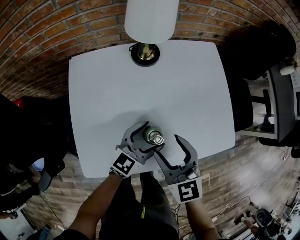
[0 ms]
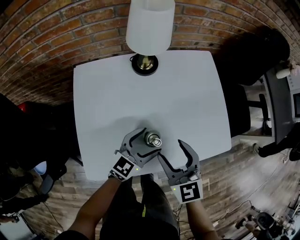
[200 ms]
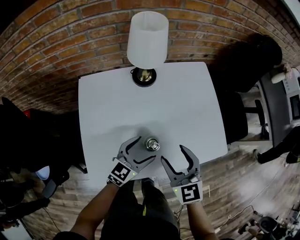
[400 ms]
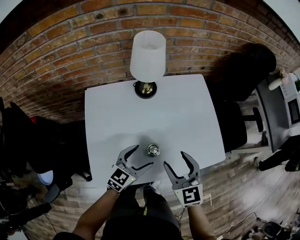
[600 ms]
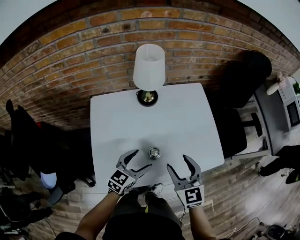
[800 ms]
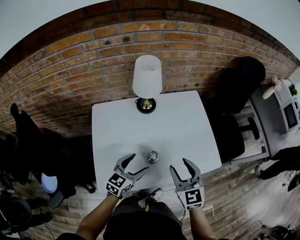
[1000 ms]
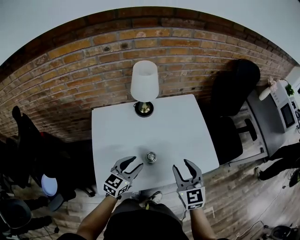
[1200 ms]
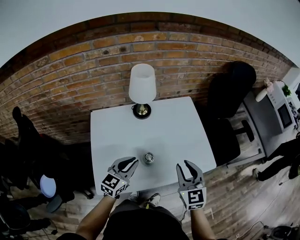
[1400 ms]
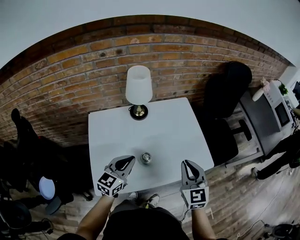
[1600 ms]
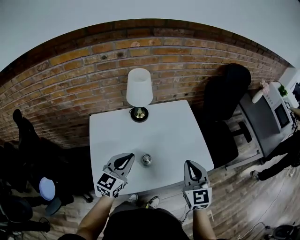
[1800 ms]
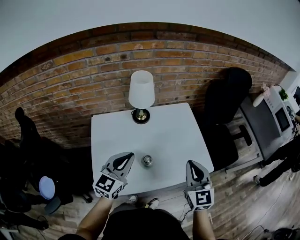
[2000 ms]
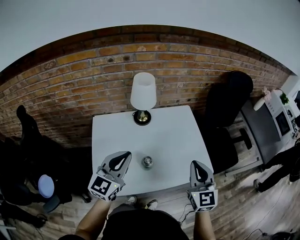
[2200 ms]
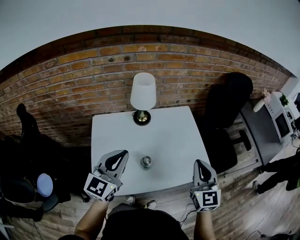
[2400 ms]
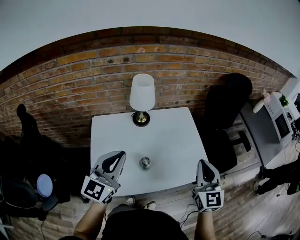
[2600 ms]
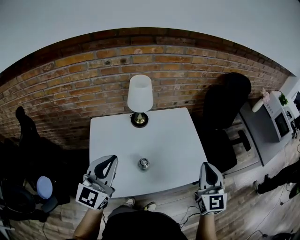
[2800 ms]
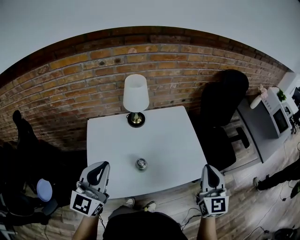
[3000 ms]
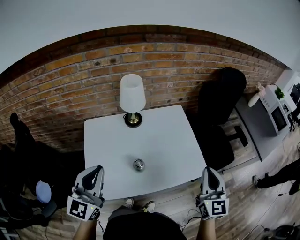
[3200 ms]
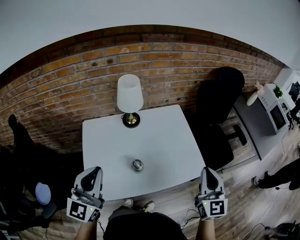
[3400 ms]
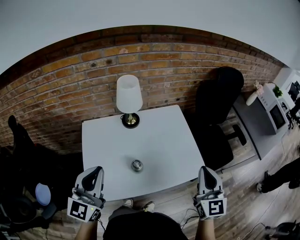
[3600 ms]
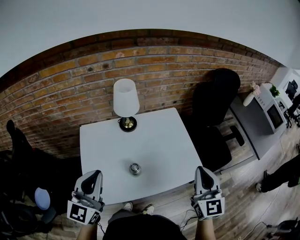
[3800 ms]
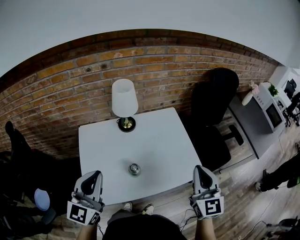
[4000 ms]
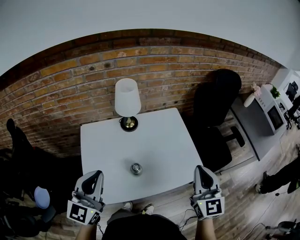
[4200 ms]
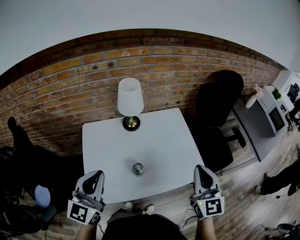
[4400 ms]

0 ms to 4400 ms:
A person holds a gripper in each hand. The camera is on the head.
0 ms to 1400 ms: The right gripper goes about 15 cm upward and to the right, and closes its fingers. Meanwhile the left gripper moves upward and to the left, about 15 cm, and closes up.
1400 ms to 3000 ms: The right gripper moves upward and to the right, about 15 cm, and closes. The left gripper shifts some 20 cm upward, and changes its angle by about 30 degrees.
3000 ms to 4400 ms: The grippers move only a little.

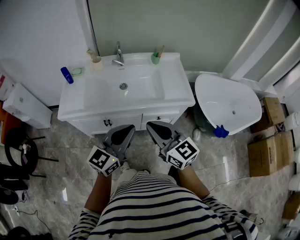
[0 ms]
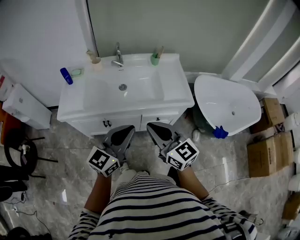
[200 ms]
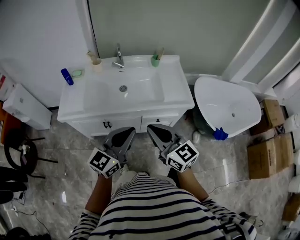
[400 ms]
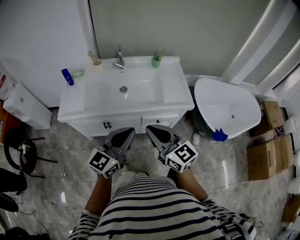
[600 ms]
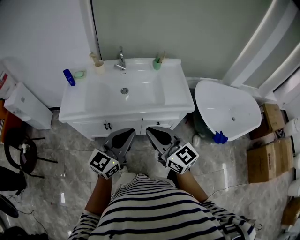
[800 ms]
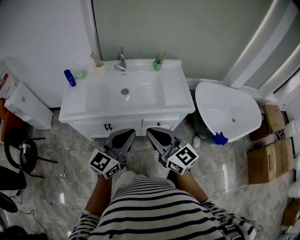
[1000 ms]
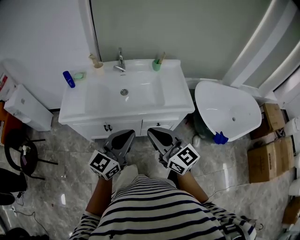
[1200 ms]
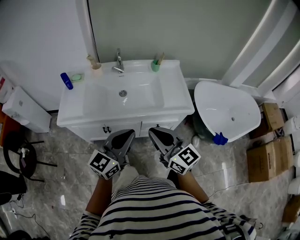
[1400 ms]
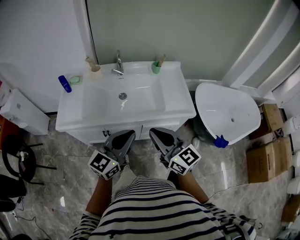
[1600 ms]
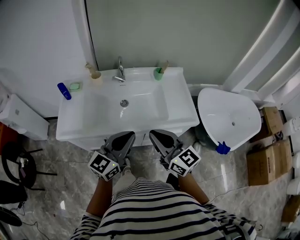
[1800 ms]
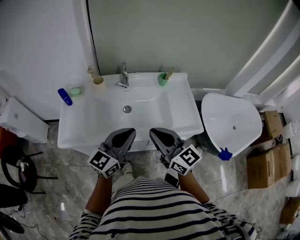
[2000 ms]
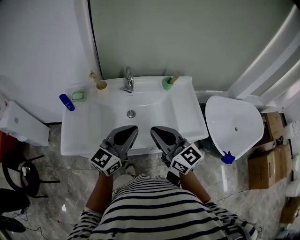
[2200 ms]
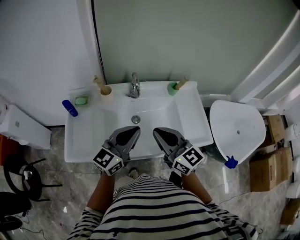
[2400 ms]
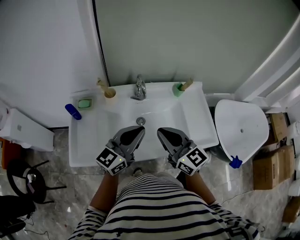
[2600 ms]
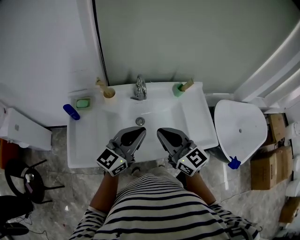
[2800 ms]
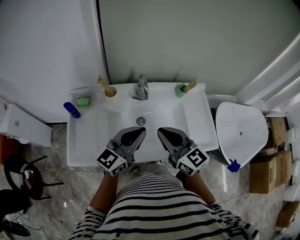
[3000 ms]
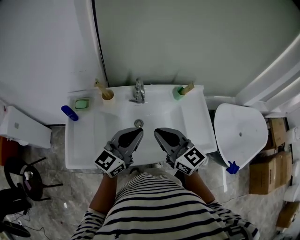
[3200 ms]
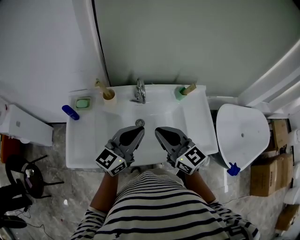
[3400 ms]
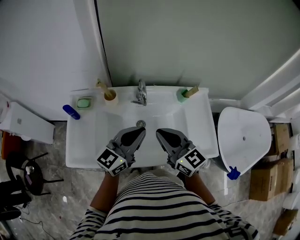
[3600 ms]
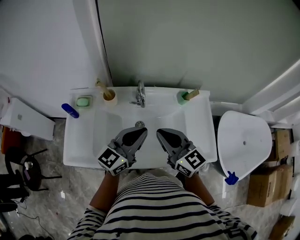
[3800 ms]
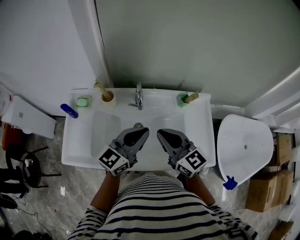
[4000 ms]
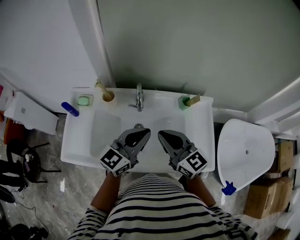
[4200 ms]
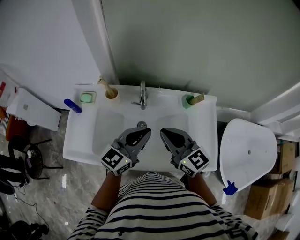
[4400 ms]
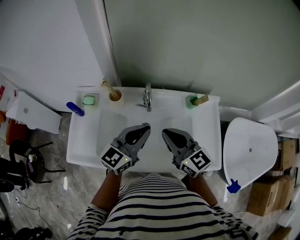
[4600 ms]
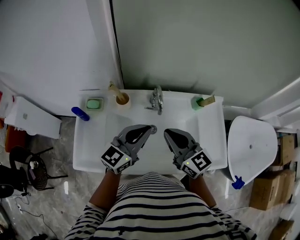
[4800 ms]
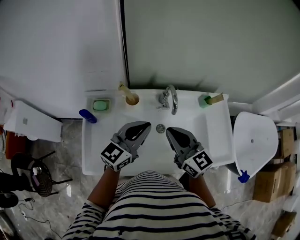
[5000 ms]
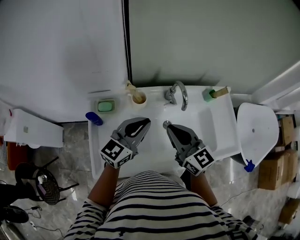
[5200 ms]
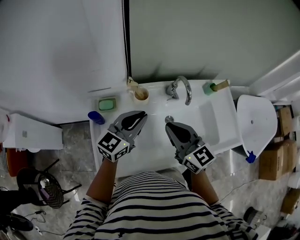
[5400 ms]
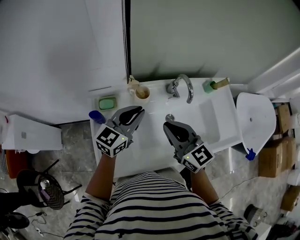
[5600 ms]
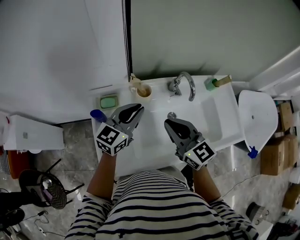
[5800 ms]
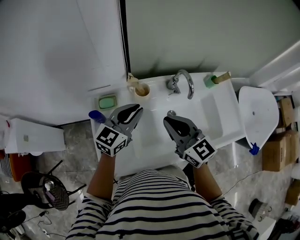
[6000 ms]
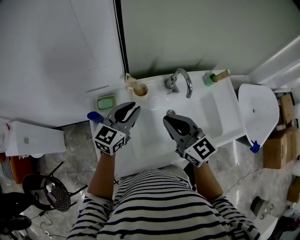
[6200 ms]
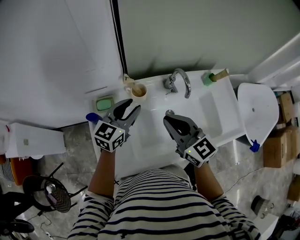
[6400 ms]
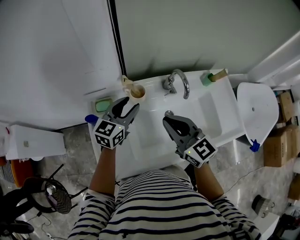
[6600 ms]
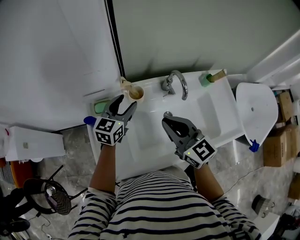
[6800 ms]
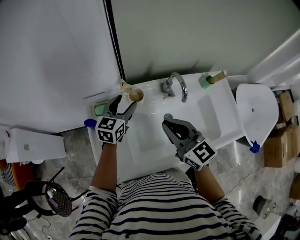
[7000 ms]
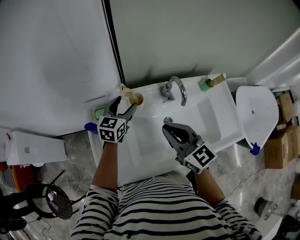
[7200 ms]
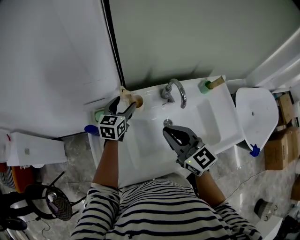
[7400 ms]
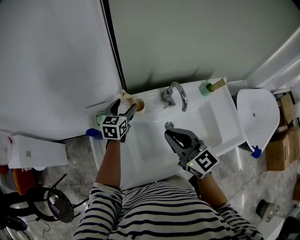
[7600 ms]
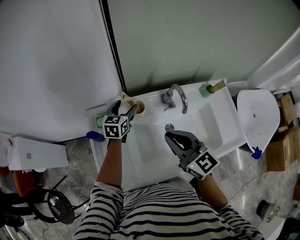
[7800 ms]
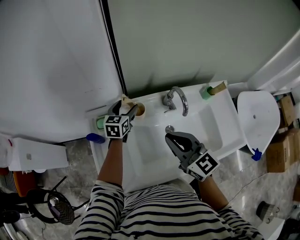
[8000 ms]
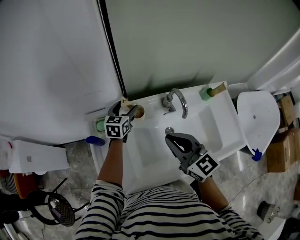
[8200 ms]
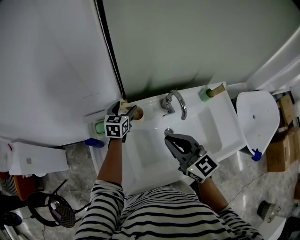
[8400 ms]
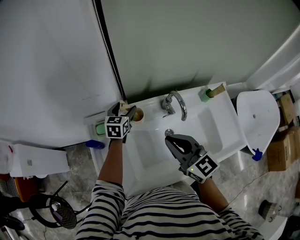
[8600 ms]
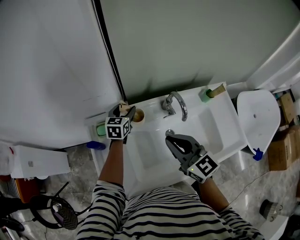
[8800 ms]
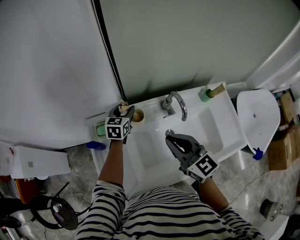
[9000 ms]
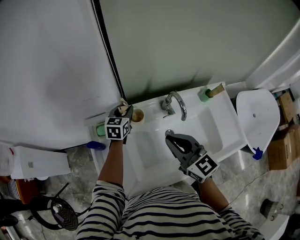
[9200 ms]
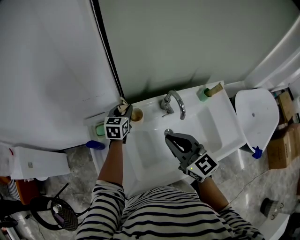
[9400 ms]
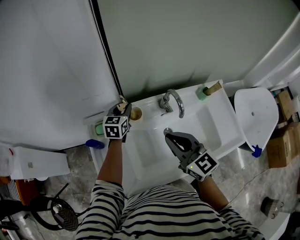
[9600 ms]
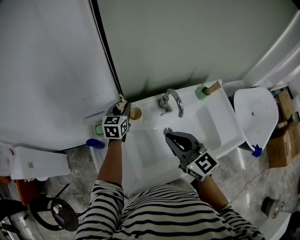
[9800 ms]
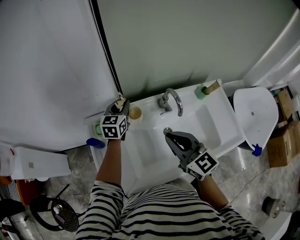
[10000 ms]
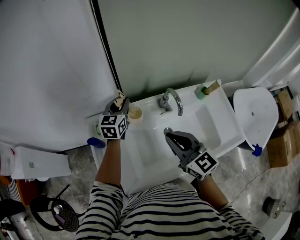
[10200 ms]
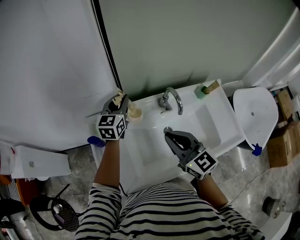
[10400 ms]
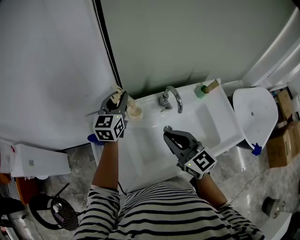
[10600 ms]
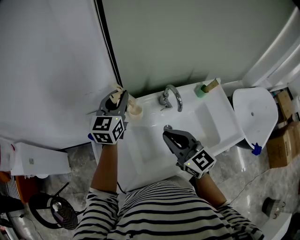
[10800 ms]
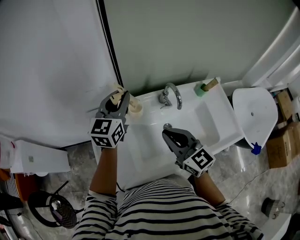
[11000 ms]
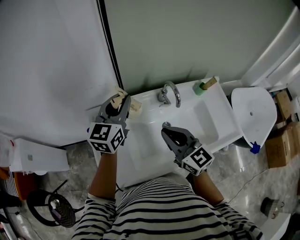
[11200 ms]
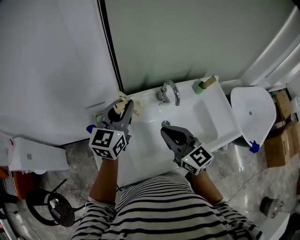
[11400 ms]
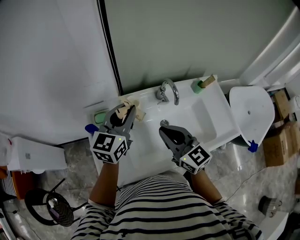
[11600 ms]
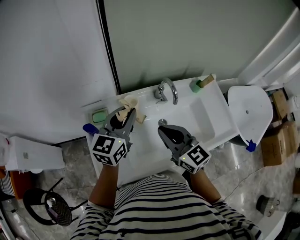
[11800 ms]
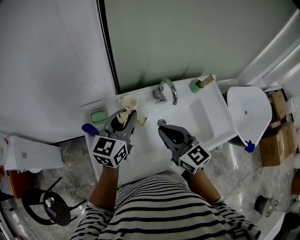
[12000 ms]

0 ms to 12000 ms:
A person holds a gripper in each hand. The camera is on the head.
0 ms to 1600 ms: The left gripper is displaced forward by roughly 5 cm.
1600 ms to 3000 ms: The two grippers go about 25 cm forward and to the left.
3000 ms to 4400 ms: The left gripper is displaced to the right and forward by approximately 10 cm. Meanwhile the right gripper goes approximately 10 cm forward and to the right.
4400 ms to 6000 ms: The two grippers go about 25 cm to the left.
6000 ms to 7600 ms: The left gripper moves forward and downward, about 15 cm, swivels about 20 degrees, and opens.
7600 ms to 9000 ms: The left gripper shifts by approximately 5 cm, and closes.
9000 ms to 10400 ms: The left gripper moves upward, roughly 10 cm, and closes.
10400 ms to 12000 ms: The left gripper goes roughly 15 cm backward.

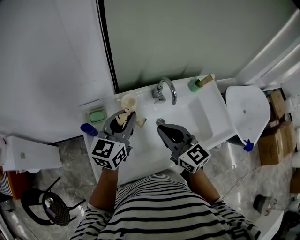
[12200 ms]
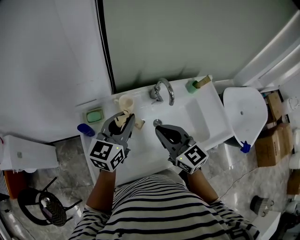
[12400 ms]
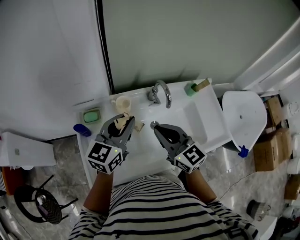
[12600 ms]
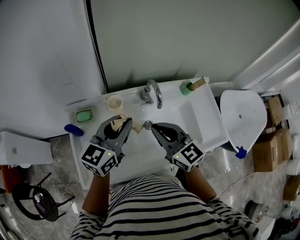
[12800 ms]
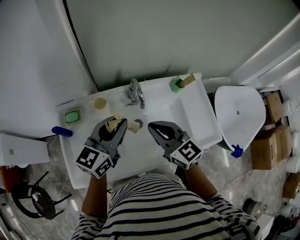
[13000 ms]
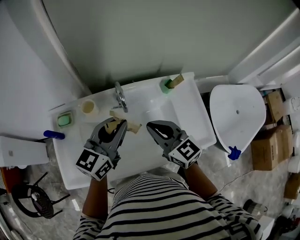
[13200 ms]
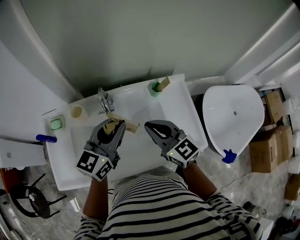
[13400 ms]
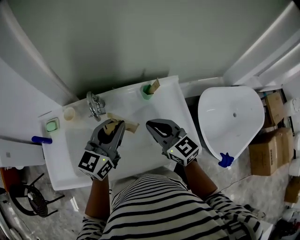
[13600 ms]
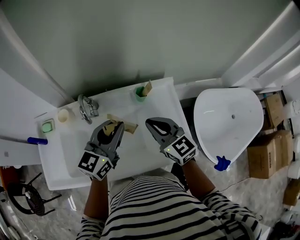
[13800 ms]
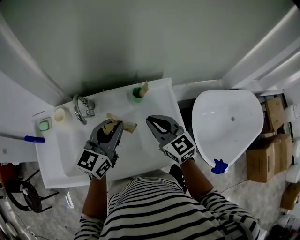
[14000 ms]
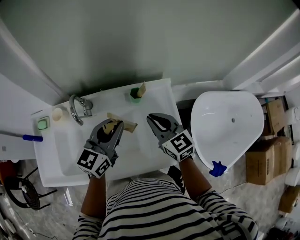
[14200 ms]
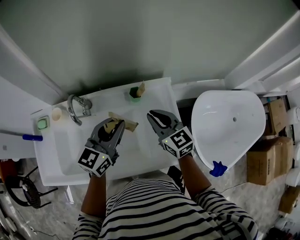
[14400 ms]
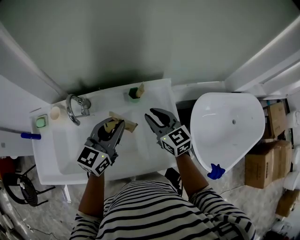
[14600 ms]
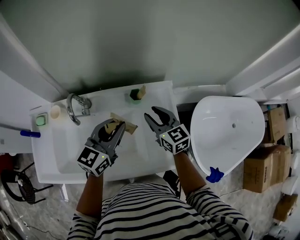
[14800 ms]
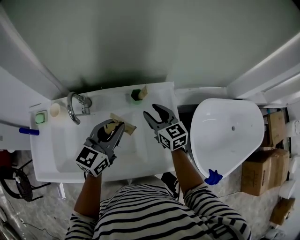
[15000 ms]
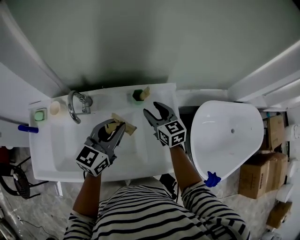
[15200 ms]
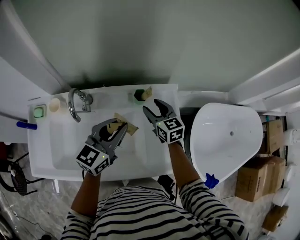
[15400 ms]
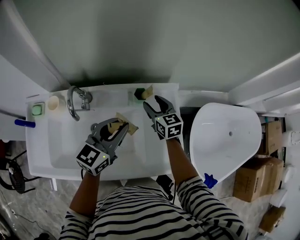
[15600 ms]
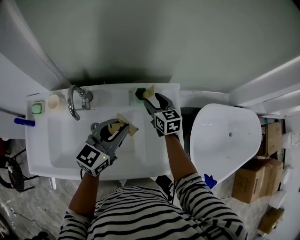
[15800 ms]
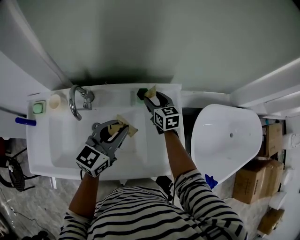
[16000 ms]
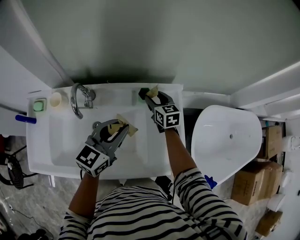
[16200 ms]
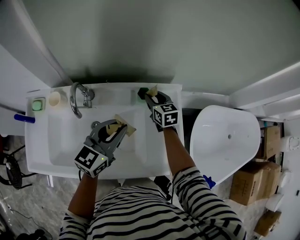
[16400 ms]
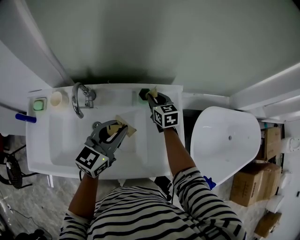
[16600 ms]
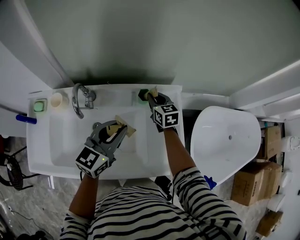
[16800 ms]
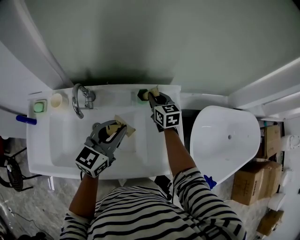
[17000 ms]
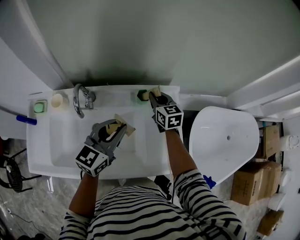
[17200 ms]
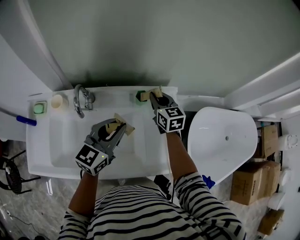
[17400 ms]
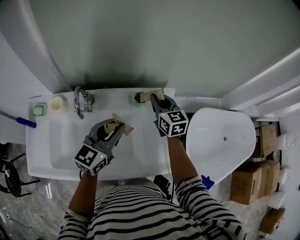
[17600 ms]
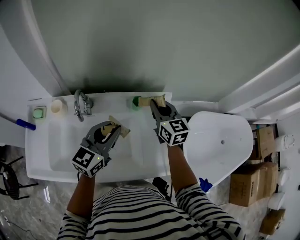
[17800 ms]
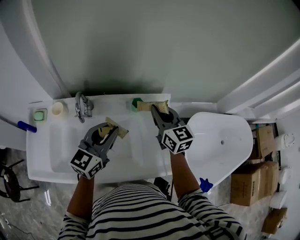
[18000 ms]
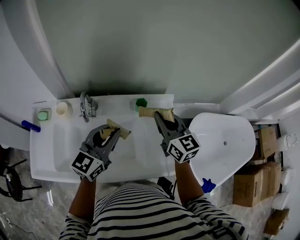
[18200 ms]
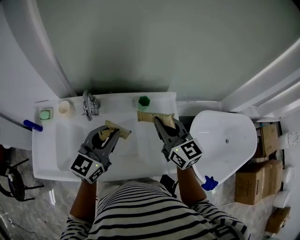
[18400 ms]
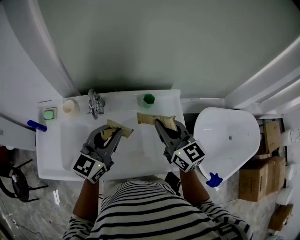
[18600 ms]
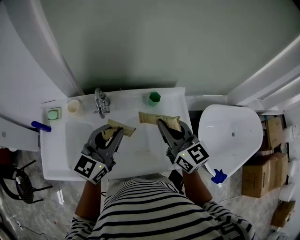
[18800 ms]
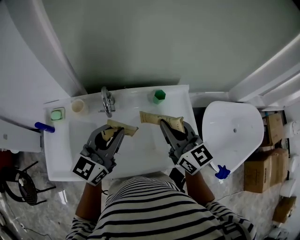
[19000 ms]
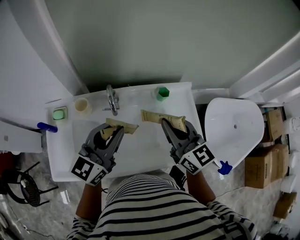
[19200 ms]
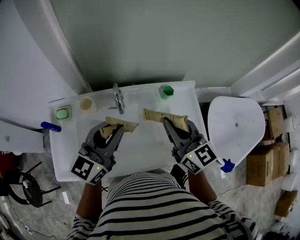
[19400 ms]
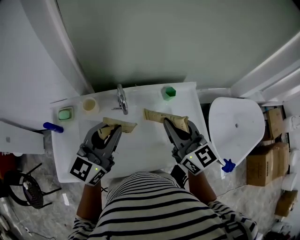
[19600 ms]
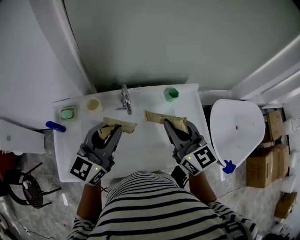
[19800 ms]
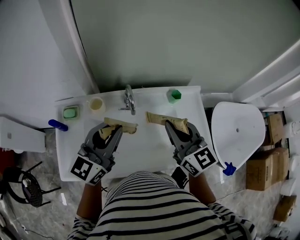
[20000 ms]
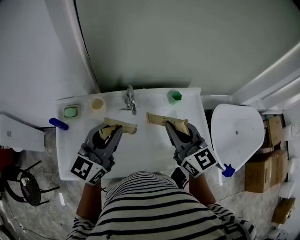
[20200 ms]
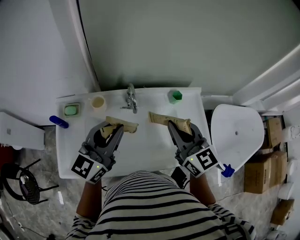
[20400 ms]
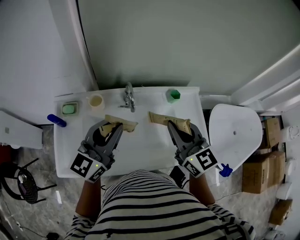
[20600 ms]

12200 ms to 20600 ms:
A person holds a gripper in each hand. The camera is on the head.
12200 ms to 13600 ms: Both grippers travel together to the right, roughly 30 cm.
13600 ms to 15000 ms: The right gripper moves forward, to the right and downward, roughly 20 cm, and opens; the left gripper travels to the right and downward by about 10 cm.
15000 ms to 16400 ms: The right gripper travels forward and downward by some 10 cm.
16400 ms to 17800 ms: The right gripper goes approximately 15 cm upward and backward, and closes up.
17800 ms to 19200 ms: The right gripper is displaced backward, to the left and upward by roughly 20 cm. The left gripper heads to the left, upward and backward, covering approximately 15 cm.
19200 ms to 20600 ms: The grippers both shift to the left by approximately 5 cm.
